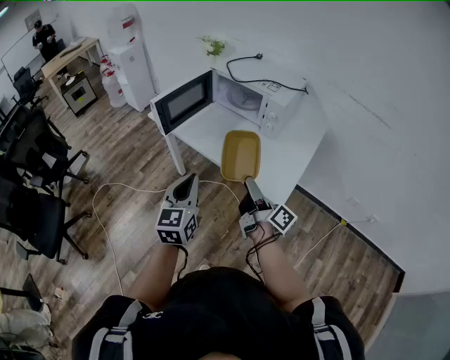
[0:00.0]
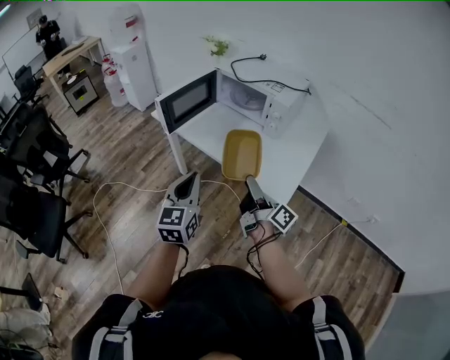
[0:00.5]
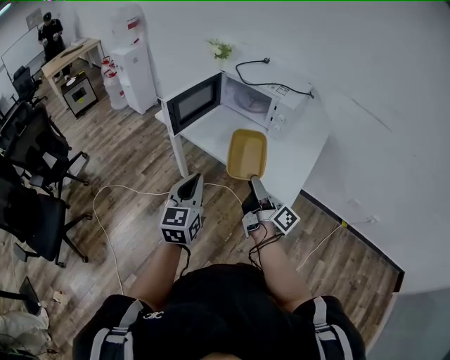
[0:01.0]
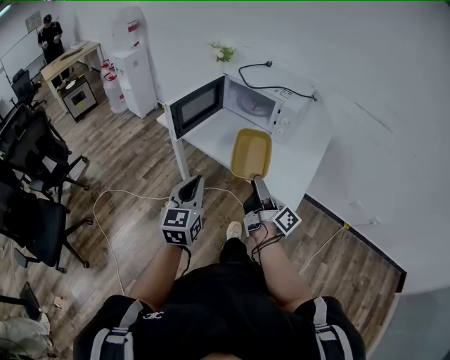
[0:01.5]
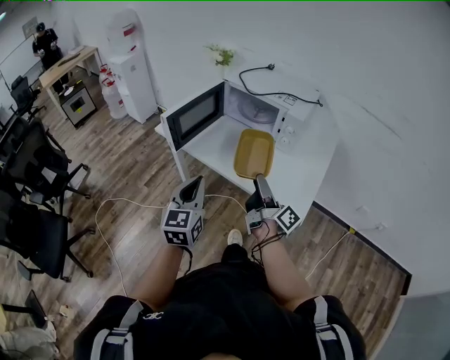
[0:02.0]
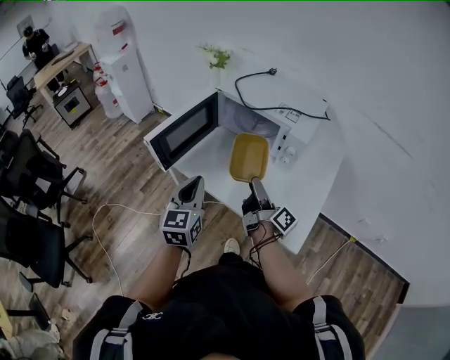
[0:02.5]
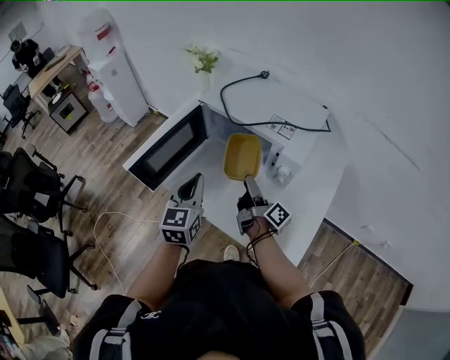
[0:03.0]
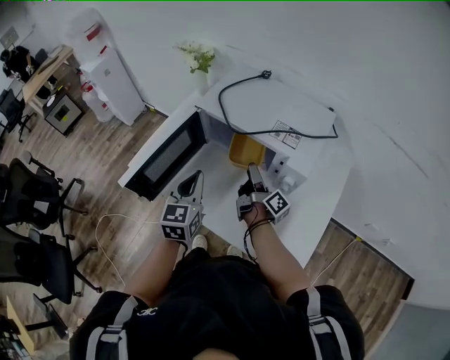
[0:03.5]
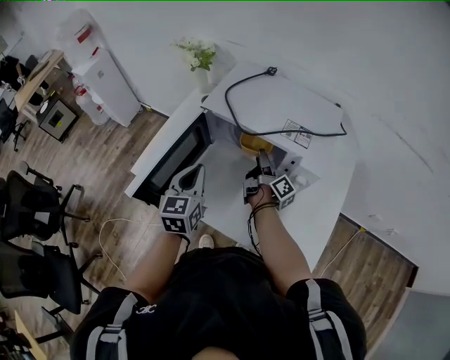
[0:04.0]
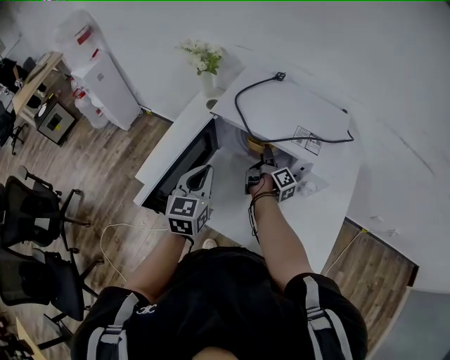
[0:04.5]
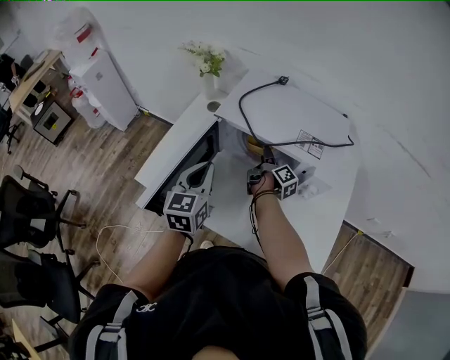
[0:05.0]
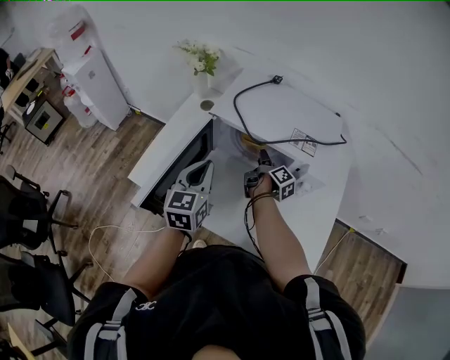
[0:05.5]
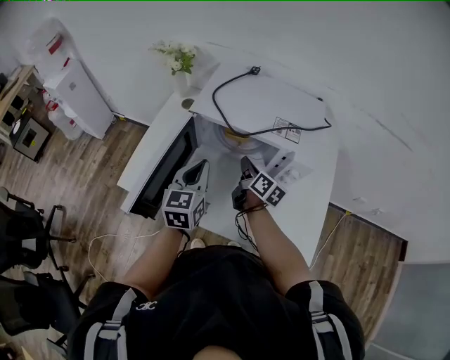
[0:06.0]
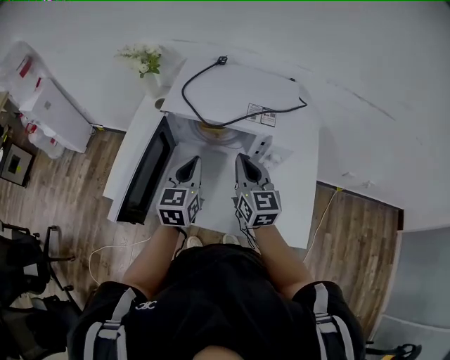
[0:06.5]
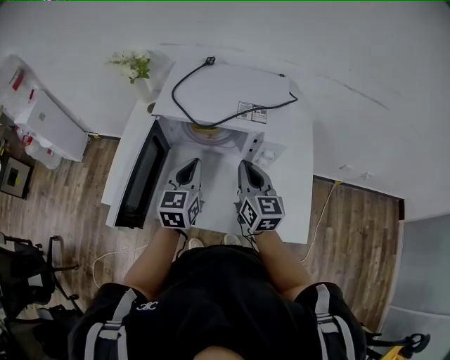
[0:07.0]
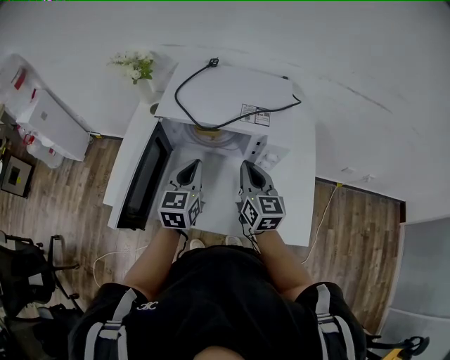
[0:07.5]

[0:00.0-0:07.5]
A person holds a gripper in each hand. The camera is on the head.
0:00.0 to 0:02.0: The left gripper travels forward and to the left by roughly 10 cm; the right gripper goes approximately 10 cm forward.
0:02.0 to 0:04.0: The two grippers travel together, forward, some 40 cm. The right gripper changes its angle by roughly 20 degrees.
0:05.5 to 0:07.5: The left gripper moves to the right, some 10 cm. The right gripper moves upward, backward and to the right, about 20 cm, twists roughly 70 degrees counterclockwise, seen from behind, and closes up.

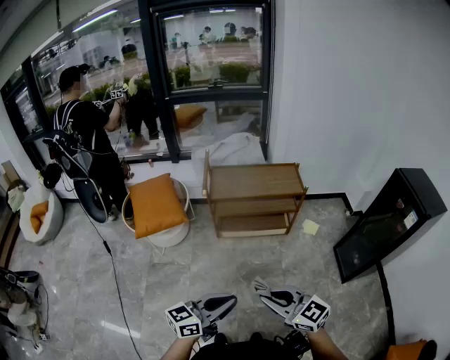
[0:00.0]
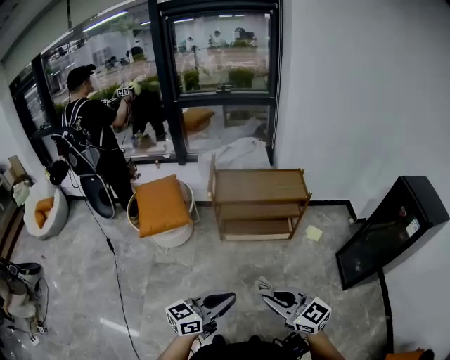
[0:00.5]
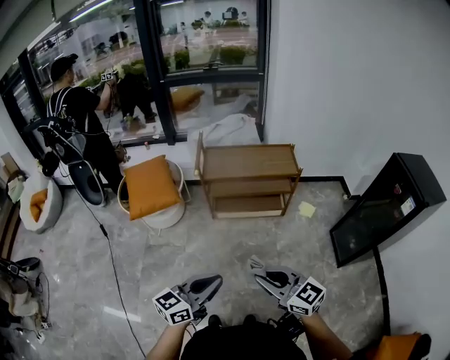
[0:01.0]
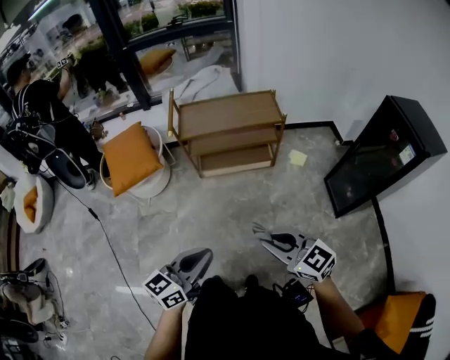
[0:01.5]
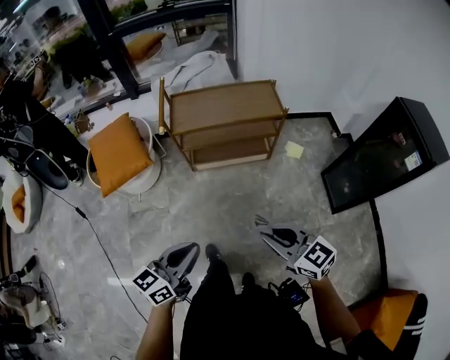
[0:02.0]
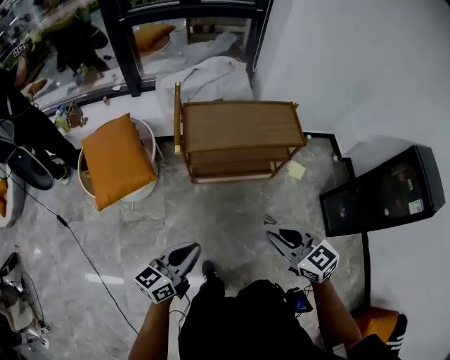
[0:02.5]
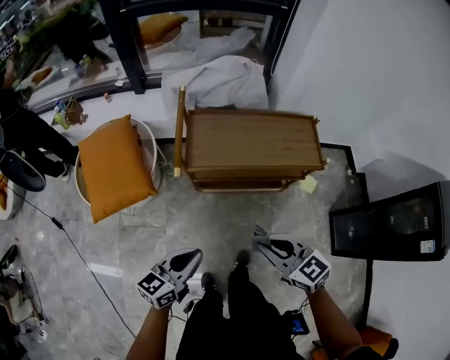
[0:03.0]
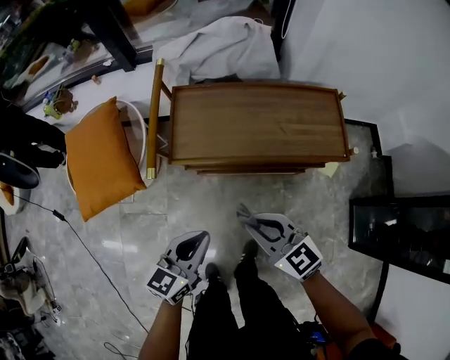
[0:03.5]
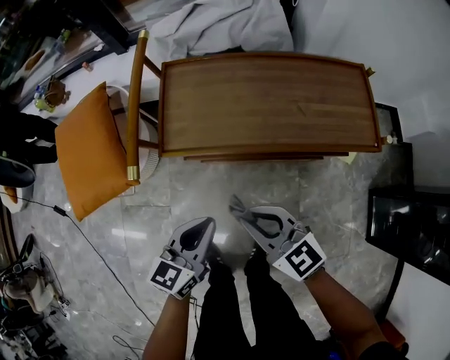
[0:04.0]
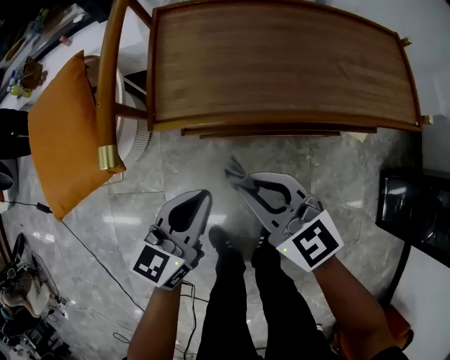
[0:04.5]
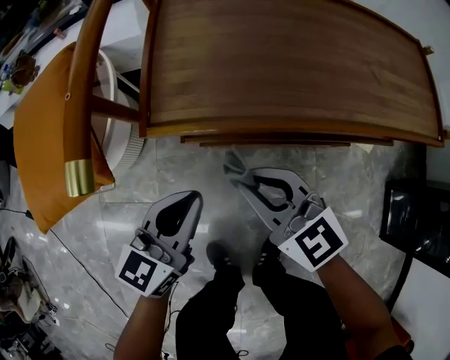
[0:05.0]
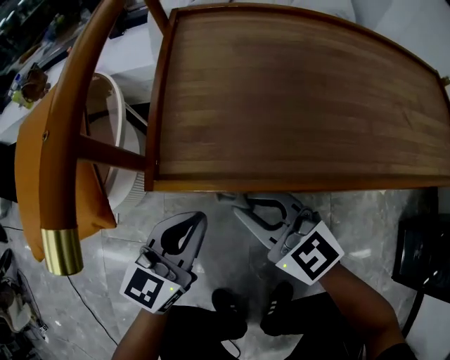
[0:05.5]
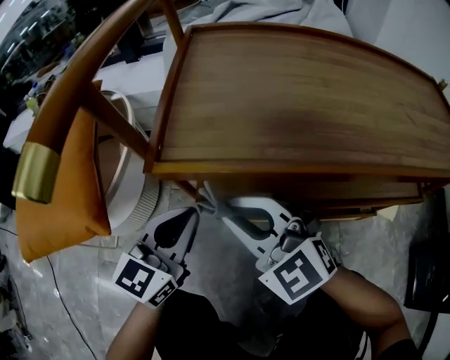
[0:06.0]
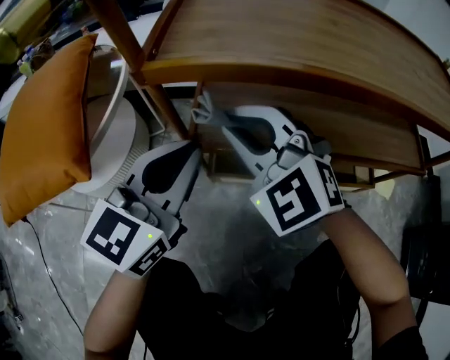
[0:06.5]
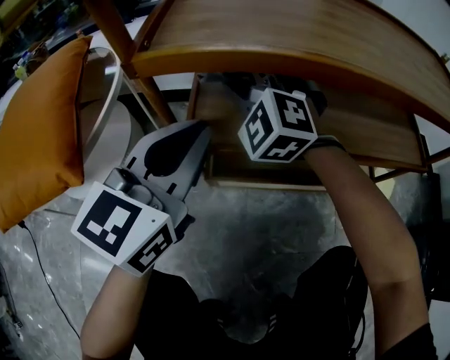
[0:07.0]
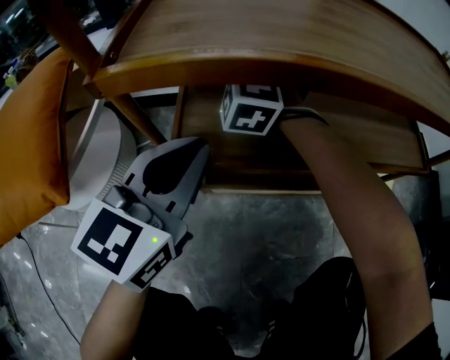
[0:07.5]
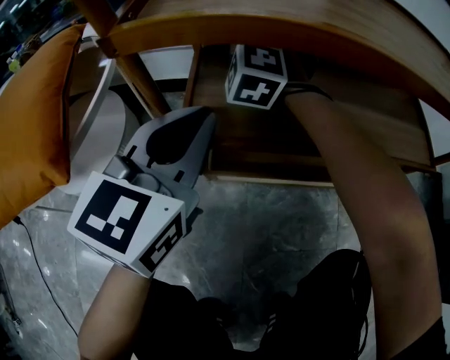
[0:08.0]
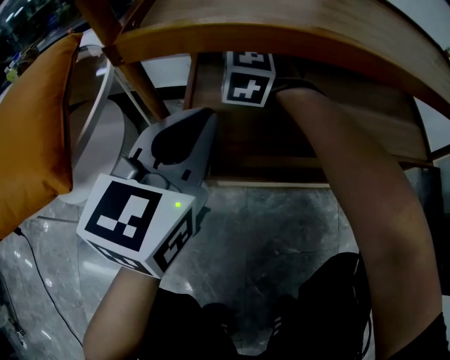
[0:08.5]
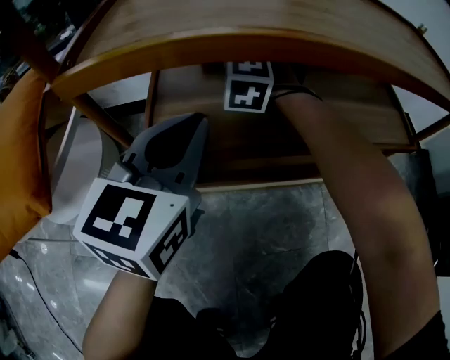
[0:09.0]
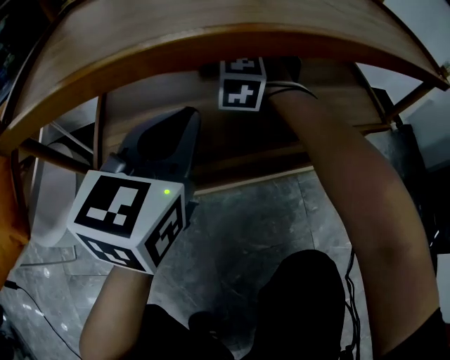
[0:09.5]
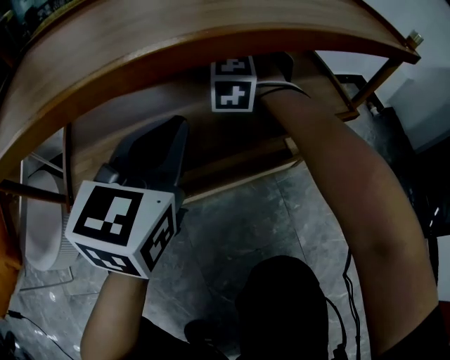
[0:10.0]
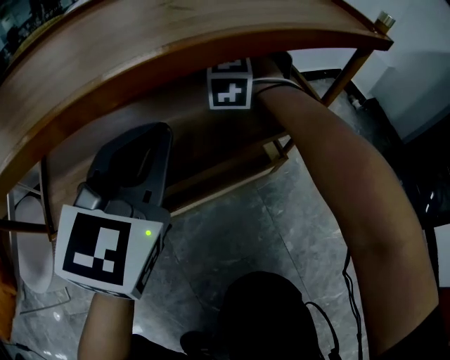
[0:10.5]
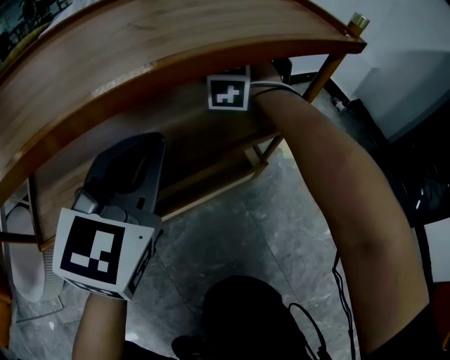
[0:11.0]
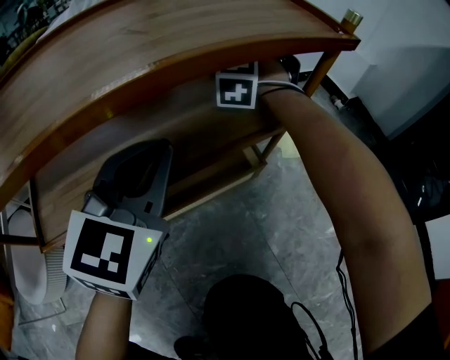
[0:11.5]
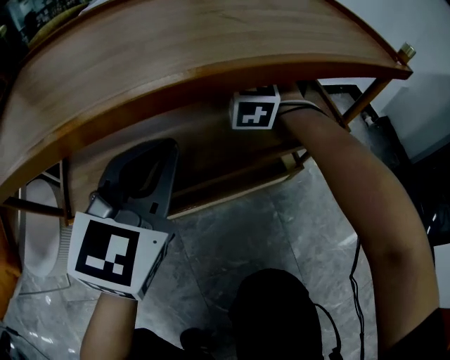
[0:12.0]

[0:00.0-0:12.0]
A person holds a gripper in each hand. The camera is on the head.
0:00.0 to 0:02.0: The left gripper changes place by roughly 10 cm.
0:02.0 to 0:04.0: The left gripper changes place by about 50 cm.
0:04.0 to 0:06.0: The left gripper goes roughly 20 cm downward.
0:06.0 to 0:08.0: The left gripper moves approximately 5 cm.
0:08.0 to 0:10.0: The left gripper ends up some 20 cm from where it was.

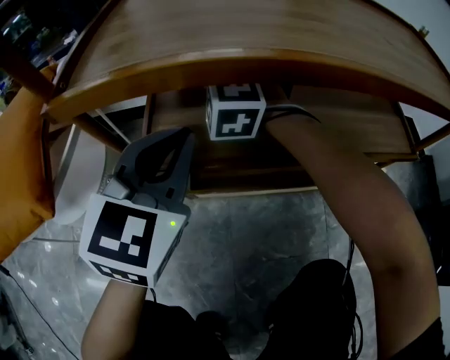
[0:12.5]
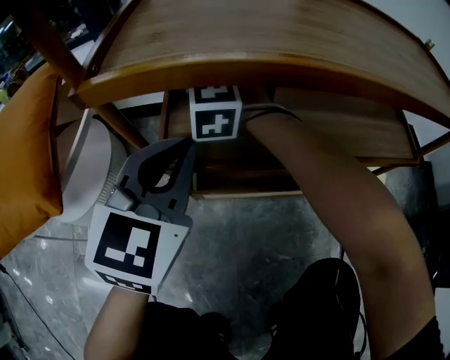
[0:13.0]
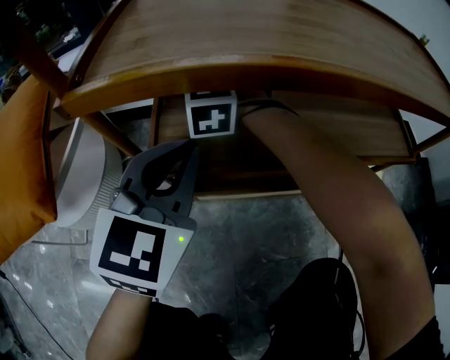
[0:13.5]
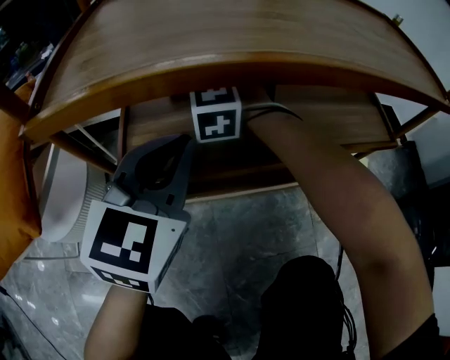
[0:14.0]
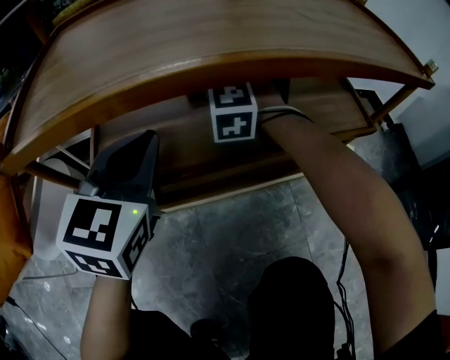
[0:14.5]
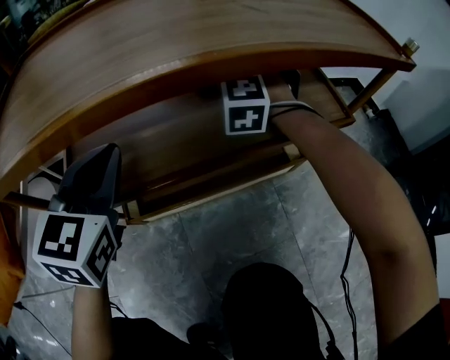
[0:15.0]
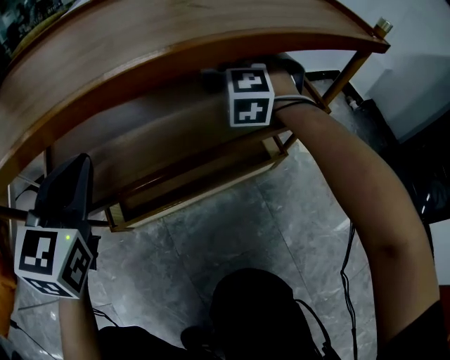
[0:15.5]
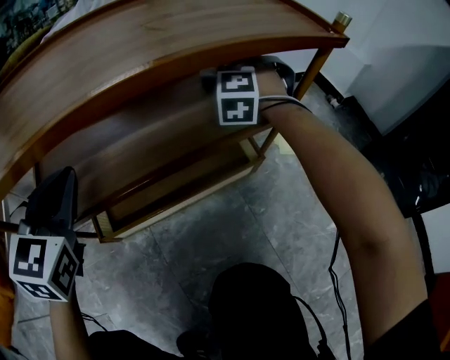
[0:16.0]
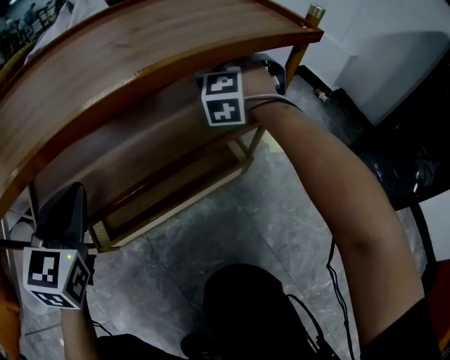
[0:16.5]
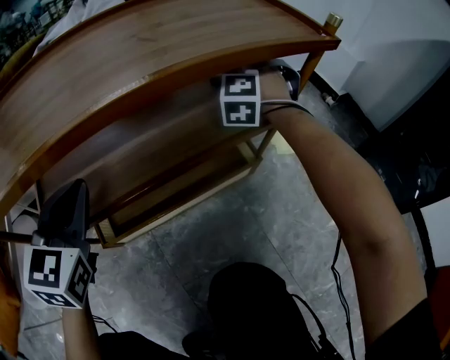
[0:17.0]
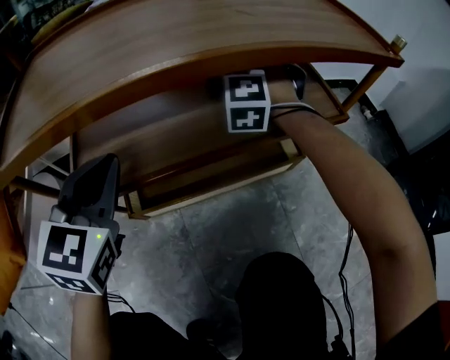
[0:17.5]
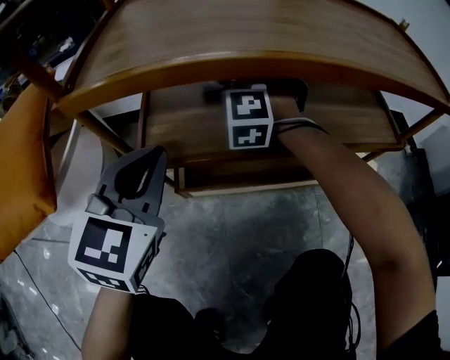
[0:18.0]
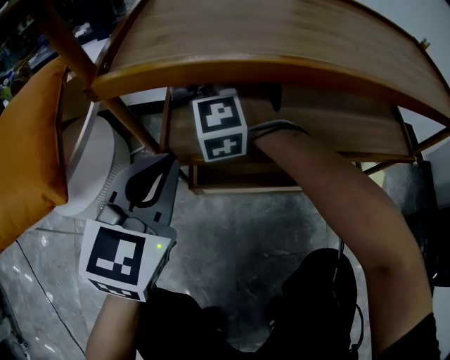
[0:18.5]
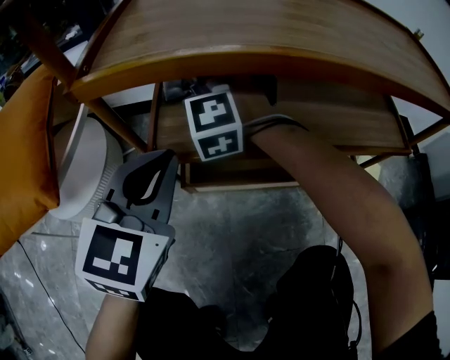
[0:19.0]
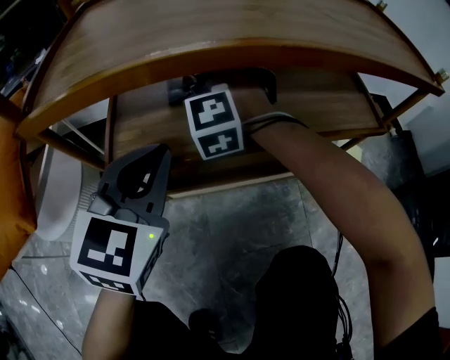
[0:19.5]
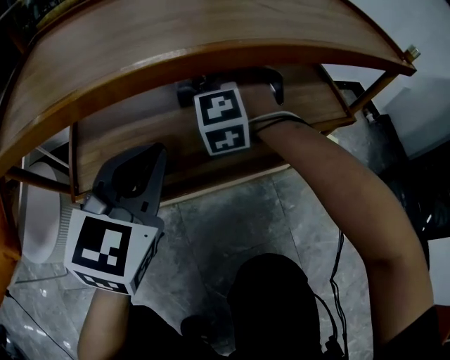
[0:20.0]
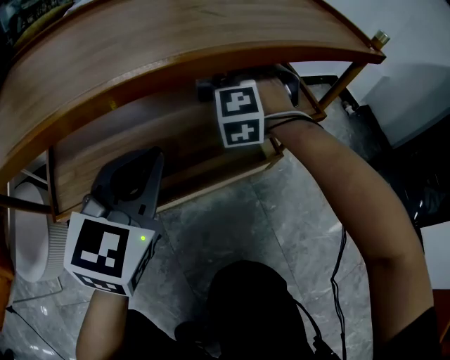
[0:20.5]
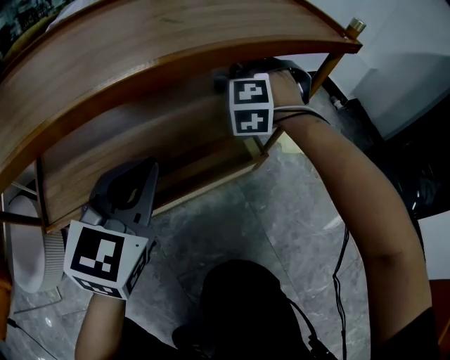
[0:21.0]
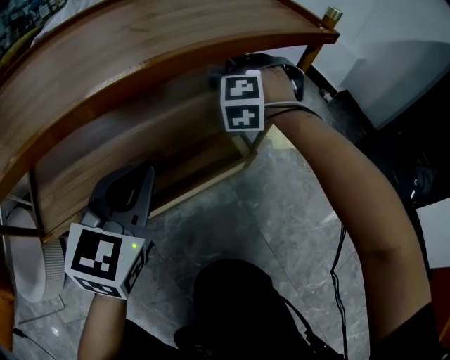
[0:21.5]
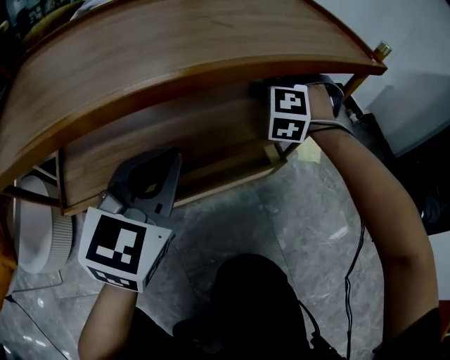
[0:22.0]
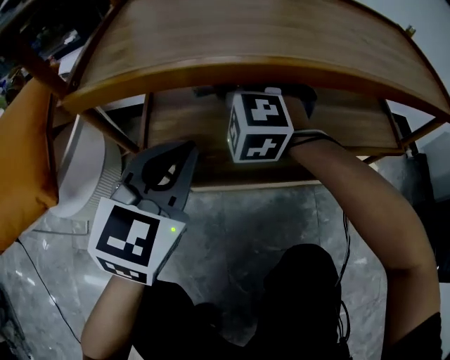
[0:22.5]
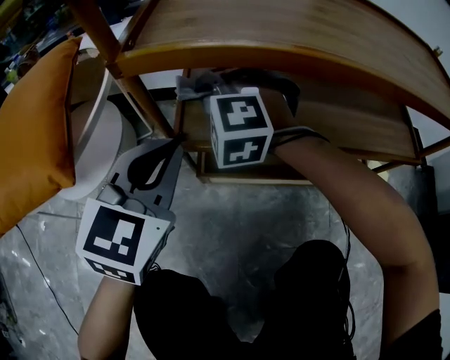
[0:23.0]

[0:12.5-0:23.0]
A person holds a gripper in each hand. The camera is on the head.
0:12.5 to 0:14.5: The left gripper ends up approximately 5 cm from where it was.
0:14.5 to 0:16.5: The left gripper shifts by approximately 5 cm.
0:16.5 to 0:19.0: The left gripper shifts by approximately 15 cm.
0:19.0 to 0:21.0: The left gripper ends up roughly 25 cm from where it was, and rotates about 20 degrees.
0:21.0 to 0:23.0: The left gripper shifts by some 30 cm, and changes its angle by some 20 degrees.
